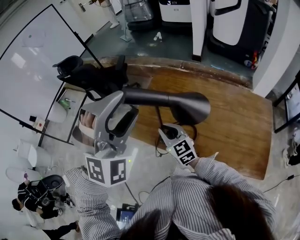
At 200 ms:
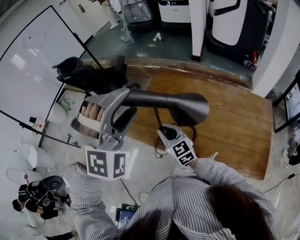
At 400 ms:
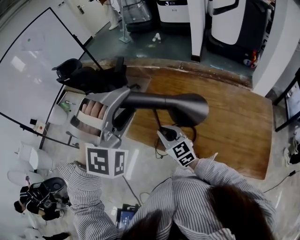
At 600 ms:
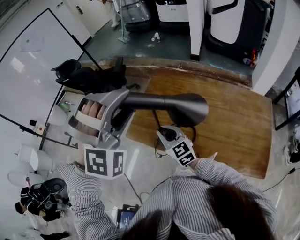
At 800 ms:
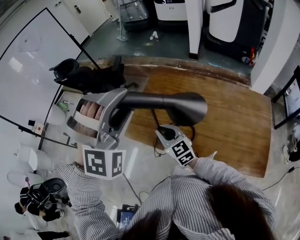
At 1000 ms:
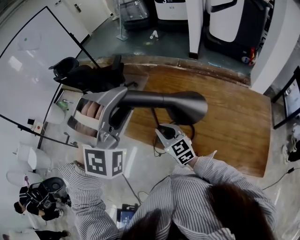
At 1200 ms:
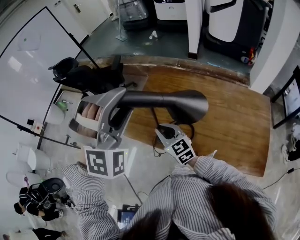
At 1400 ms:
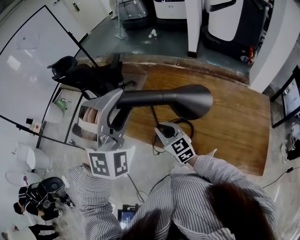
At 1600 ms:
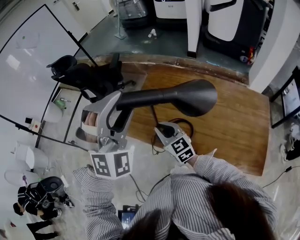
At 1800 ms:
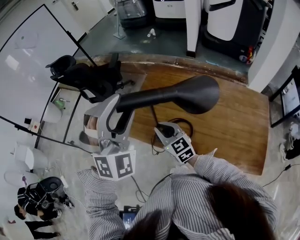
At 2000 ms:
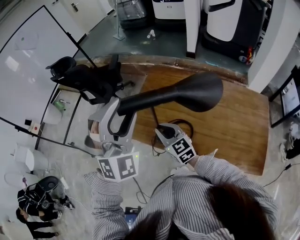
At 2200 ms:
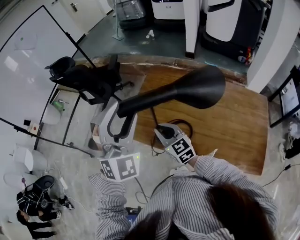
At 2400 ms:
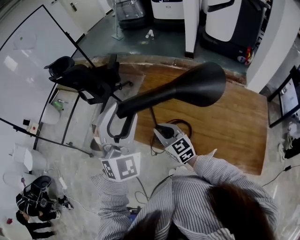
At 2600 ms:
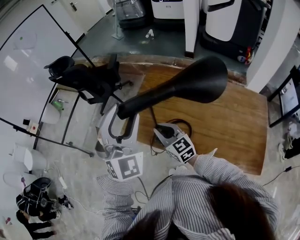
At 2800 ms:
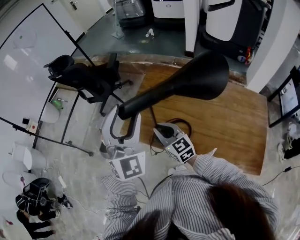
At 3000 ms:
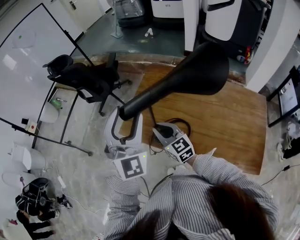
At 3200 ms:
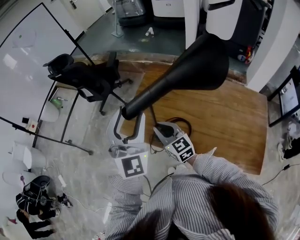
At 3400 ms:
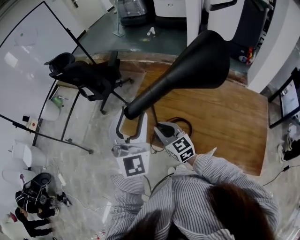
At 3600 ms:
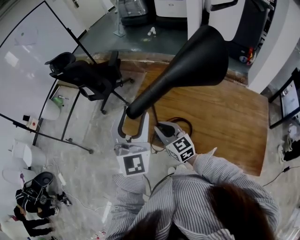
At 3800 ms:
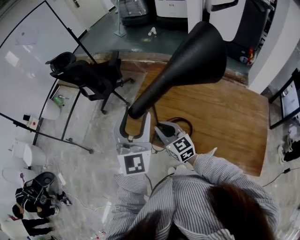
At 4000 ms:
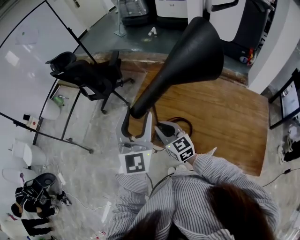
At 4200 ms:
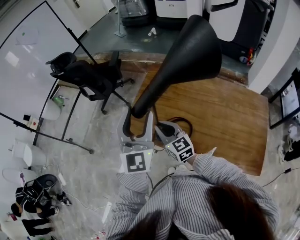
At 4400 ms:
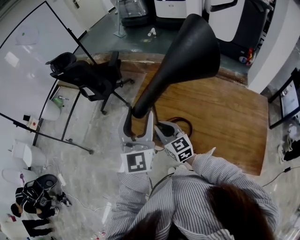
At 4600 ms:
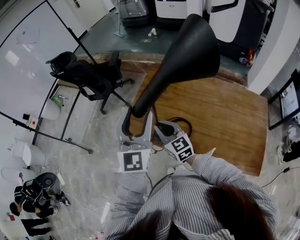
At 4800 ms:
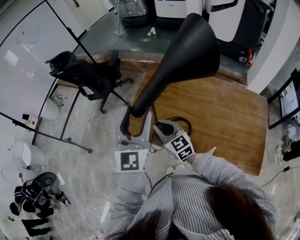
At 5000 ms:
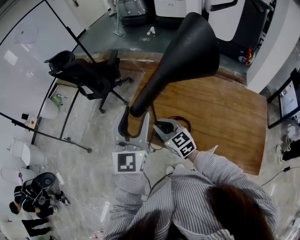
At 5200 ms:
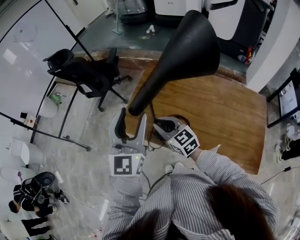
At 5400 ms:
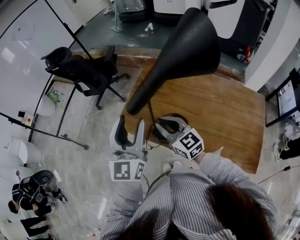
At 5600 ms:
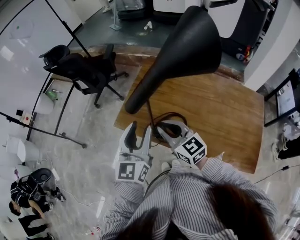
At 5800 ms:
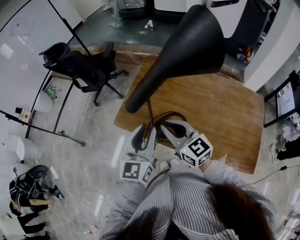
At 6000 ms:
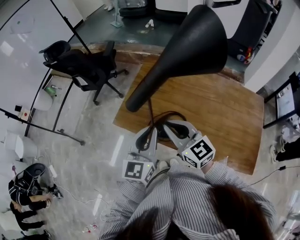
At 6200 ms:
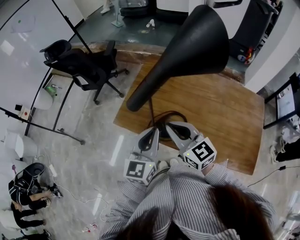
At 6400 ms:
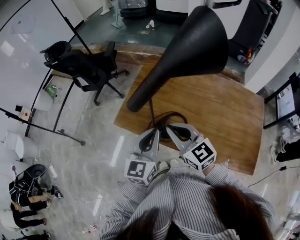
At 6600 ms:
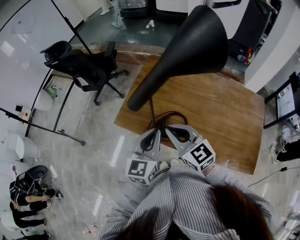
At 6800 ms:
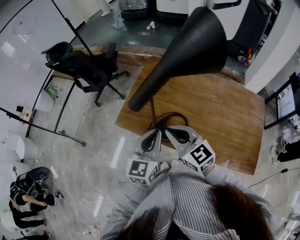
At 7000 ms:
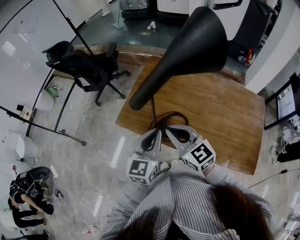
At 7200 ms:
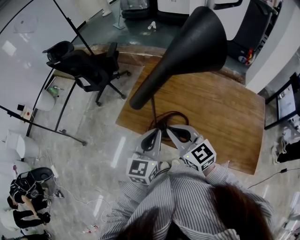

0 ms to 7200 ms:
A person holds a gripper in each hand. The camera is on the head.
0 ms to 1400 ms: The grippers stay close to where they were, moving slightly.
1400 ms to 2800 ms: The left gripper swivels about 40 degrees.
2800 ms to 4400 ms: The left gripper swivels about 30 degrees.
4400 ms to 5800 ms: The left gripper goes about 10 cm downward and backward, changes its angle by some 30 degrees, and closes up. Meanwhile the right gripper moves upward and backward, approximately 10 cm.
5800 ms to 7200 ms: The left gripper closes its fingers.

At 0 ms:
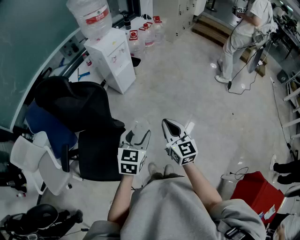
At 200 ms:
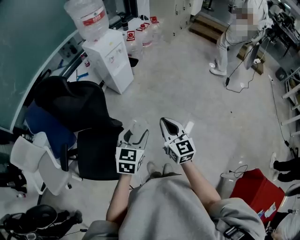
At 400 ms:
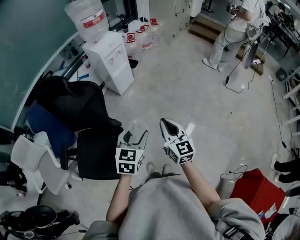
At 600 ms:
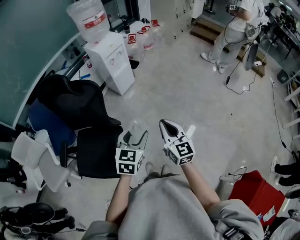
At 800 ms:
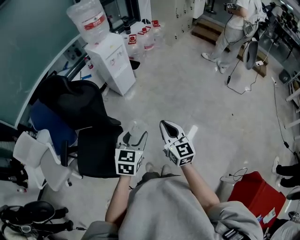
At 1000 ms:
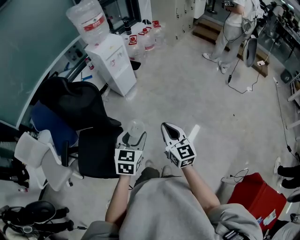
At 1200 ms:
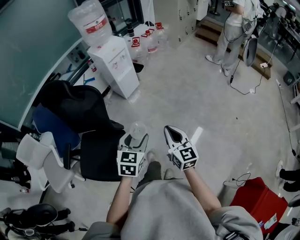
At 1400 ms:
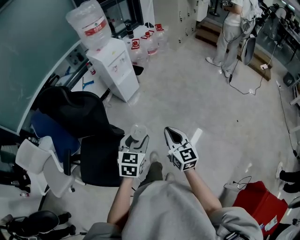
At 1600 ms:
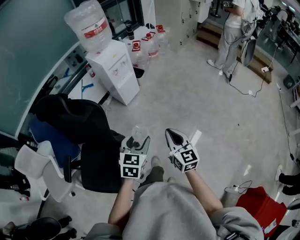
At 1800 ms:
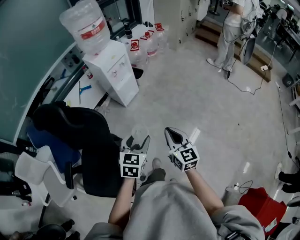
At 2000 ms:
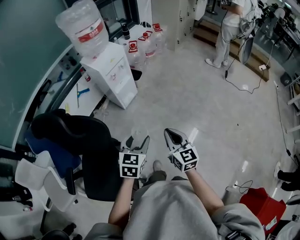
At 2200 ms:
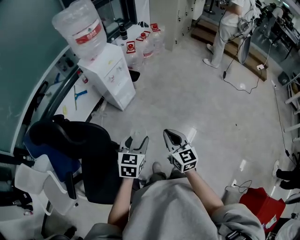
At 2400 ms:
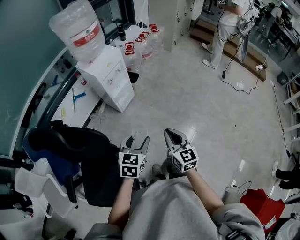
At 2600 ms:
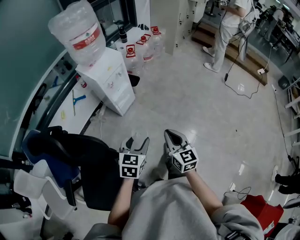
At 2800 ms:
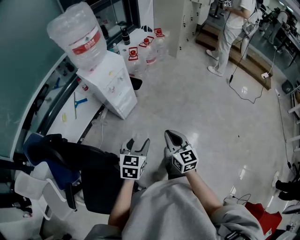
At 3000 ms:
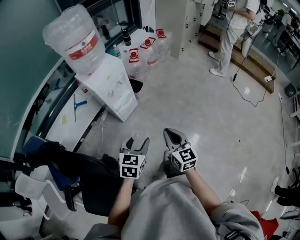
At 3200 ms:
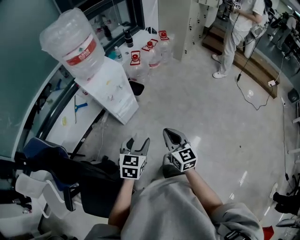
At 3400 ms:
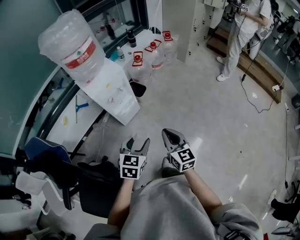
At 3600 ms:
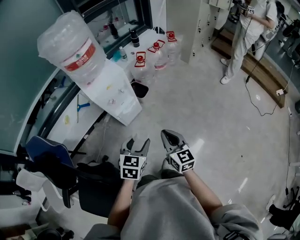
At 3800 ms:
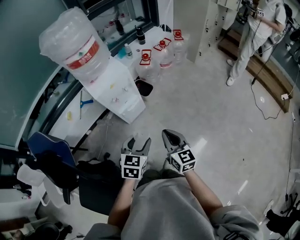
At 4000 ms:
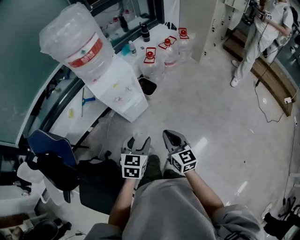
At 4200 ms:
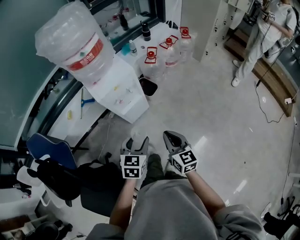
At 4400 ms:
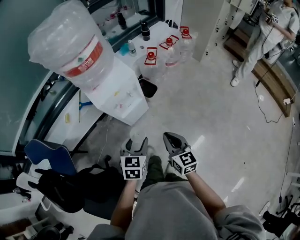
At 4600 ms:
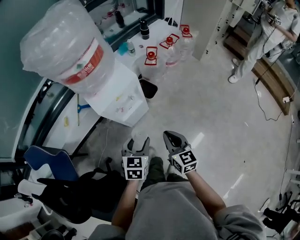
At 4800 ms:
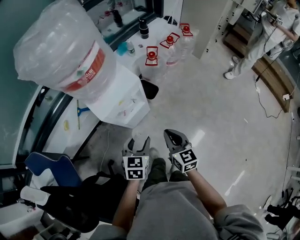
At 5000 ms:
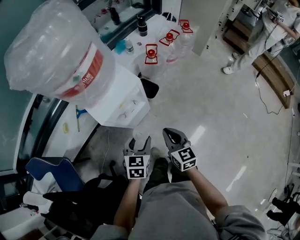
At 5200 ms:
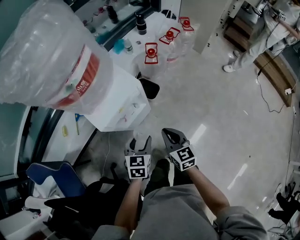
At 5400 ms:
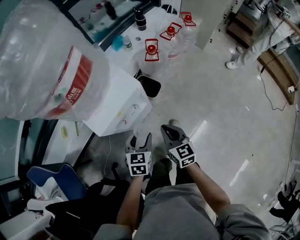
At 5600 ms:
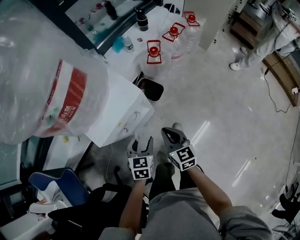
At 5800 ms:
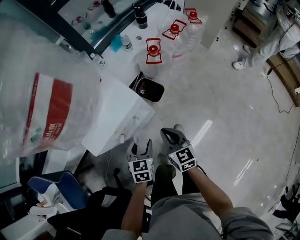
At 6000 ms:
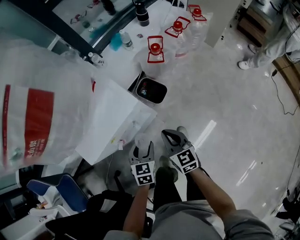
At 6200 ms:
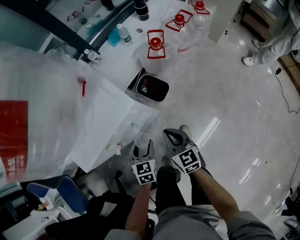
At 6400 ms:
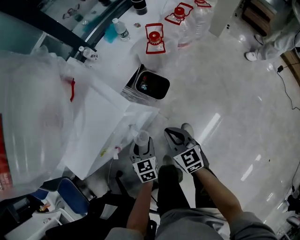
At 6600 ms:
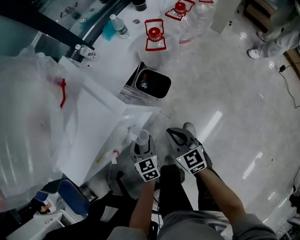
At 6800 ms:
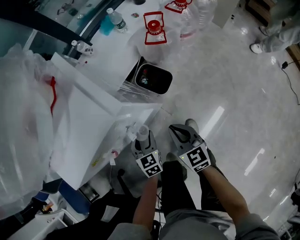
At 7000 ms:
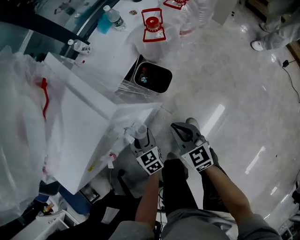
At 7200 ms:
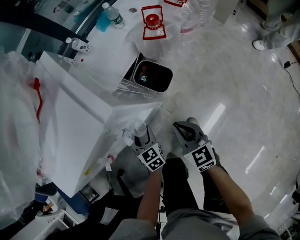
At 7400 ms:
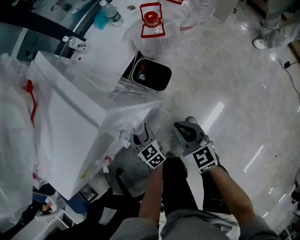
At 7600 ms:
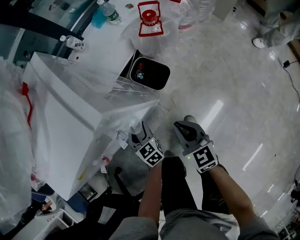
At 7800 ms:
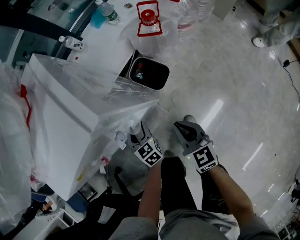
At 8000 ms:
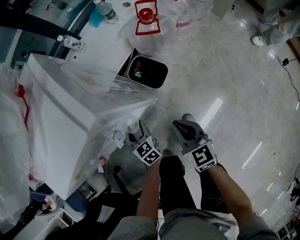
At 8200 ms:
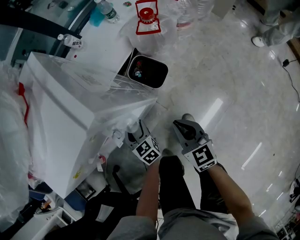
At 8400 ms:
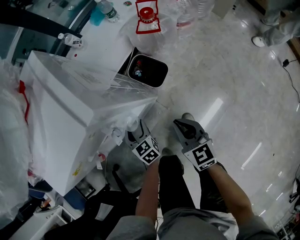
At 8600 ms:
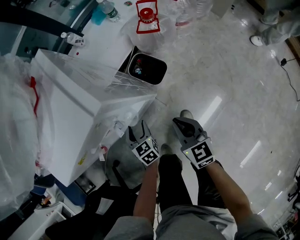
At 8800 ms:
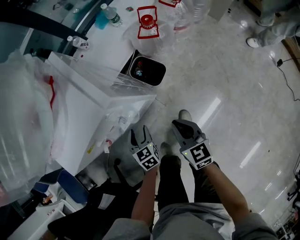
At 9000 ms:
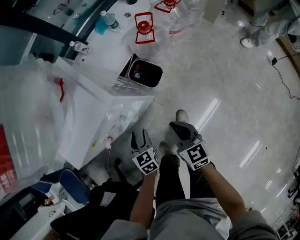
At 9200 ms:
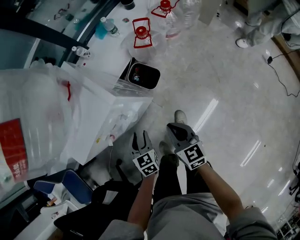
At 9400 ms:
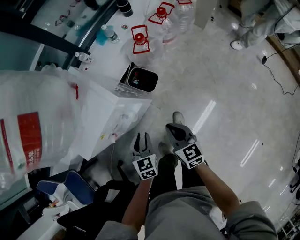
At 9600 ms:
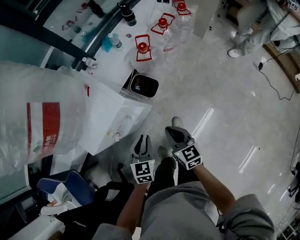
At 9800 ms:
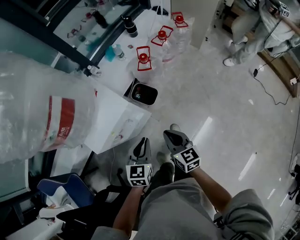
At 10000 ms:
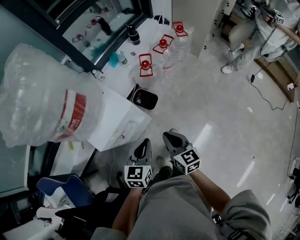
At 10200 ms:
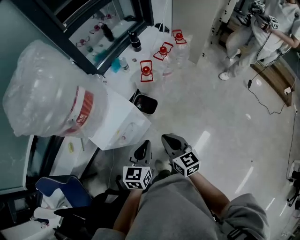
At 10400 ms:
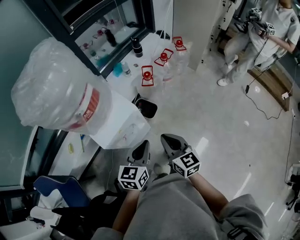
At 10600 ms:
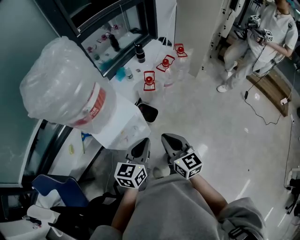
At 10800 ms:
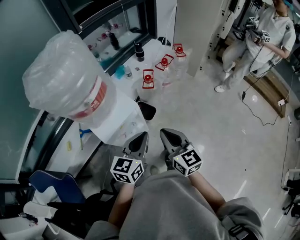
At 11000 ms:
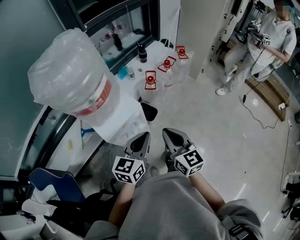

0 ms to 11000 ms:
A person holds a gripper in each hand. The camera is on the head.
0 ms to 1600 ms: Both grippers move forward, some 5 cm.
1600 ms to 3200 ms: Both grippers move forward, some 35 cm.
3200 ms to 4800 ms: Both grippers move forward, about 25 cm.
4800 ms to 6200 ms: The grippers both shift downward and forward by about 30 cm.
6200 ms to 7800 ms: The right gripper shifts about 10 cm downward. The left gripper moves downward and forward, approximately 20 cm, and changes its angle by roughly 20 degrees.
7800 ms to 9400 ms: The right gripper travels upward by approximately 20 cm; the left gripper shifts about 25 cm upward and backward, changes its angle by some 30 degrees, and closes its fingers.
9400 ms to 11000 ms: The grippers both shift upward by some 35 cm. The left gripper rotates roughly 40 degrees, and closes.

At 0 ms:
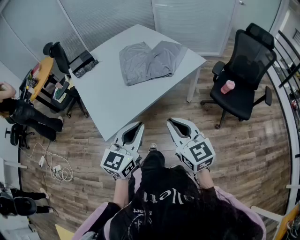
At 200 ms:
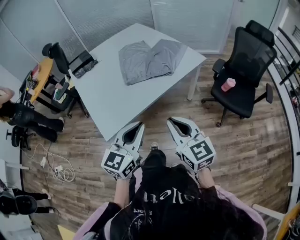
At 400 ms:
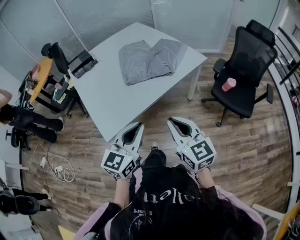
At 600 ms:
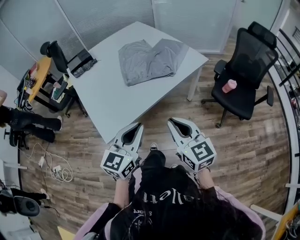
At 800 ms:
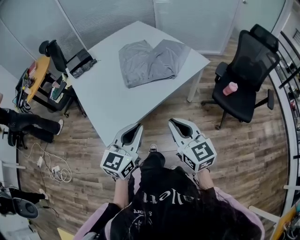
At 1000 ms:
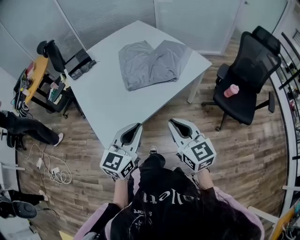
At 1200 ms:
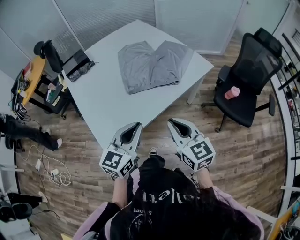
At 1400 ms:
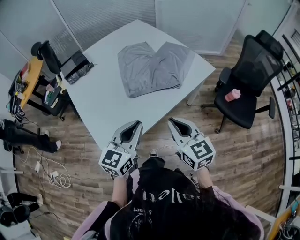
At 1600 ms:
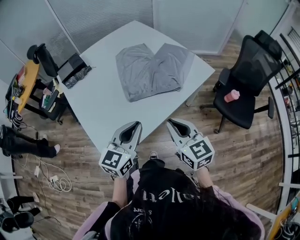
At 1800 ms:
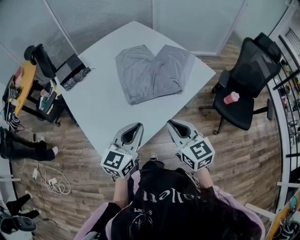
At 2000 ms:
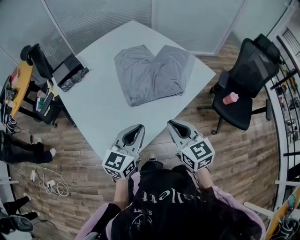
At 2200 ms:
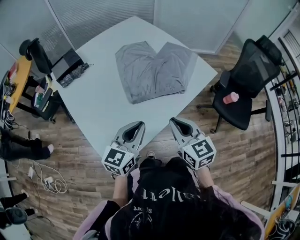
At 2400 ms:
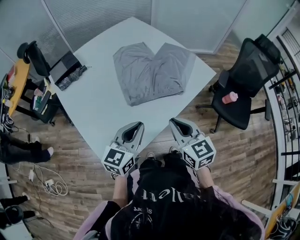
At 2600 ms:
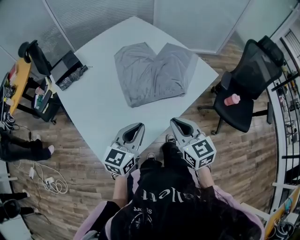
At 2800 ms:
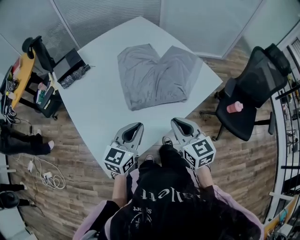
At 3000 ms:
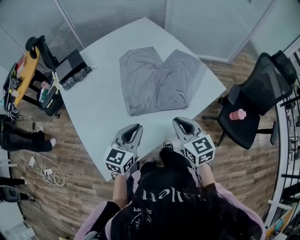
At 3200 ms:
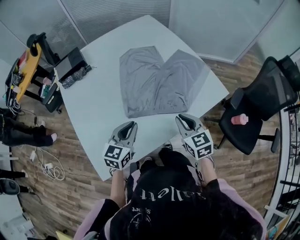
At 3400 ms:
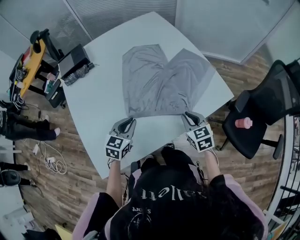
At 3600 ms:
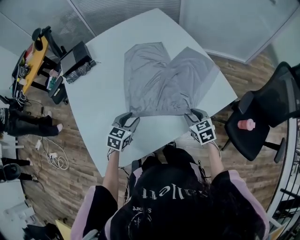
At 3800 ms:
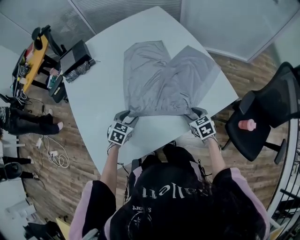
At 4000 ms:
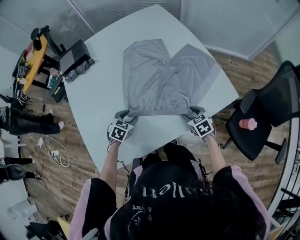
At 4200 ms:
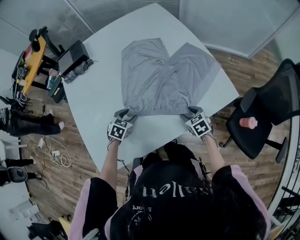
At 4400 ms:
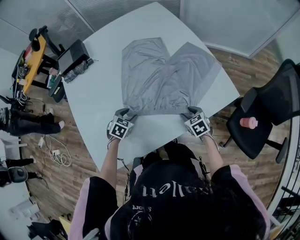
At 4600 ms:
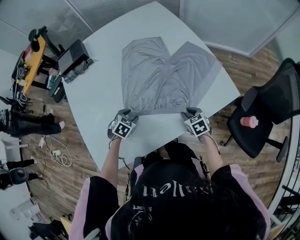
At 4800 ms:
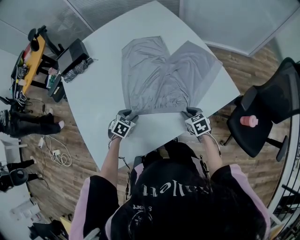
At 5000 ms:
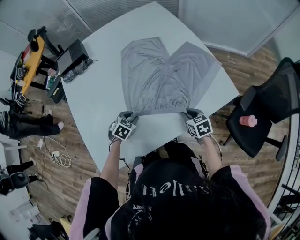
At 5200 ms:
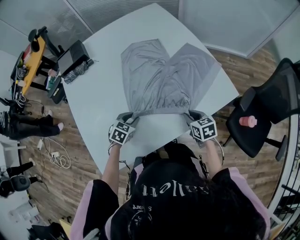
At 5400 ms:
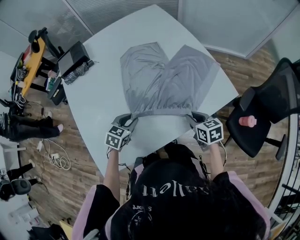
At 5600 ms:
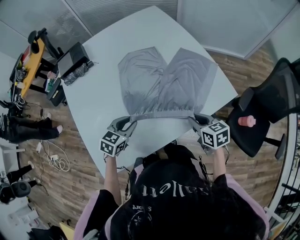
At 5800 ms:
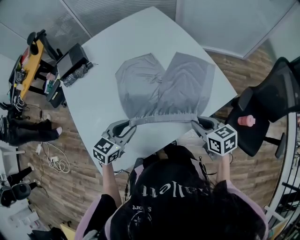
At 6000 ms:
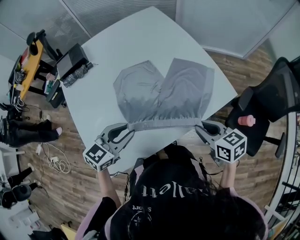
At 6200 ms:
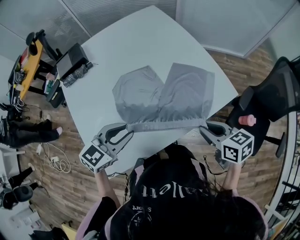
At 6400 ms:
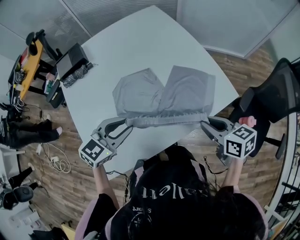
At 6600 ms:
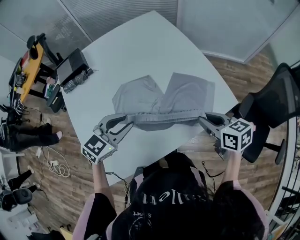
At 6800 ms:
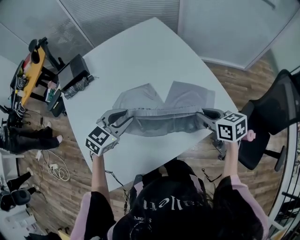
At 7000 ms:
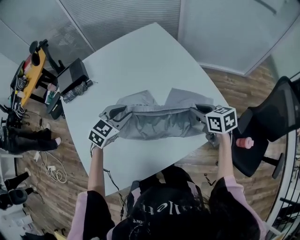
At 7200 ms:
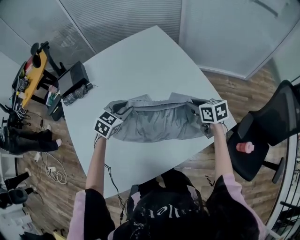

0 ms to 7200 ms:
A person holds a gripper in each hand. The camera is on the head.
0 ms to 1400 ms: The left gripper is displaced forward and to the left by approximately 15 cm, while the right gripper is displaced forward by some 15 cm.
1400 ms to 2800 ms: The right gripper is displaced forward by some 10 cm, while the left gripper goes some 15 cm forward and downward.
2800 ms to 4400 ms: The left gripper is displaced downward and forward by roughly 25 cm, tilts its fingers roughly 40 degrees downward, and opens. The right gripper goes some 30 cm downward, forward and to the right, points its fingers approximately 30 degrees further downward, and opens.
4400 ms to 5800 ms: The grippers both shift upward by approximately 15 cm. The left gripper turns by some 30 degrees, and closes up. The right gripper turns by some 20 degrees, and closes.
5800 ms to 7200 ms: Both grippers move forward, approximately 25 cm.
